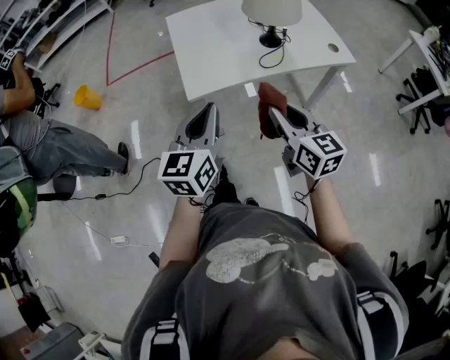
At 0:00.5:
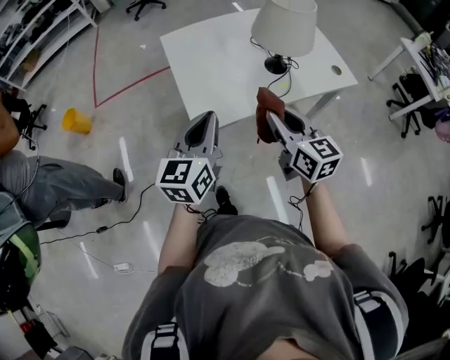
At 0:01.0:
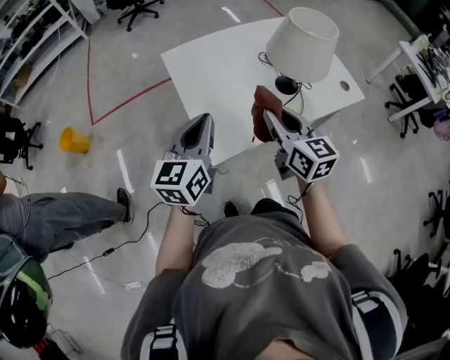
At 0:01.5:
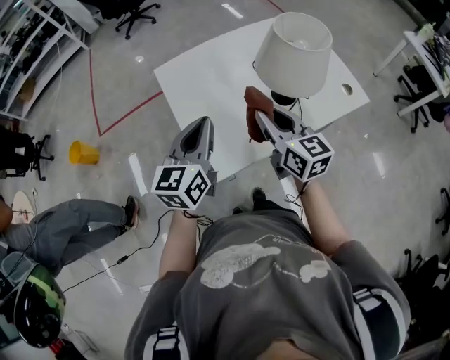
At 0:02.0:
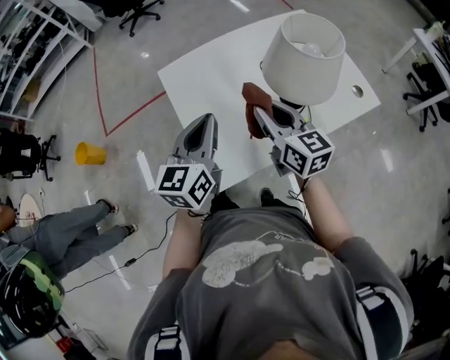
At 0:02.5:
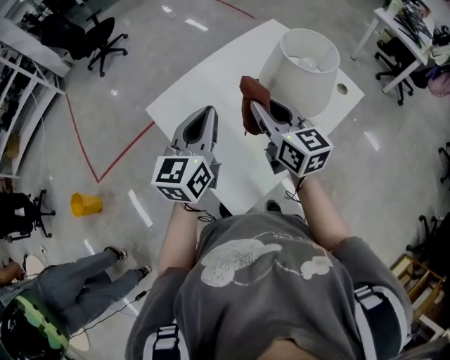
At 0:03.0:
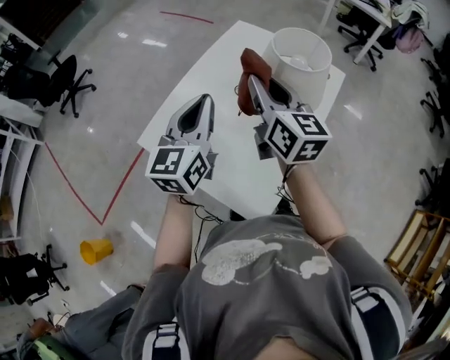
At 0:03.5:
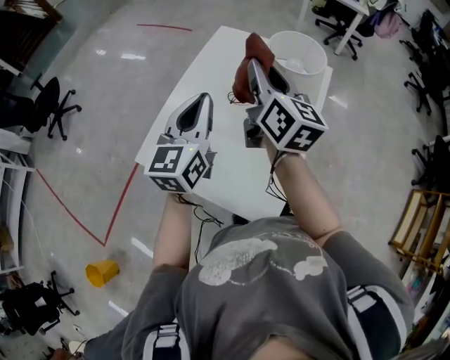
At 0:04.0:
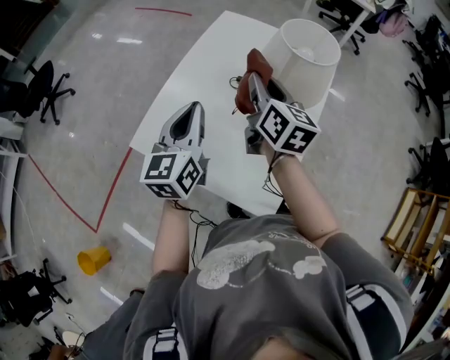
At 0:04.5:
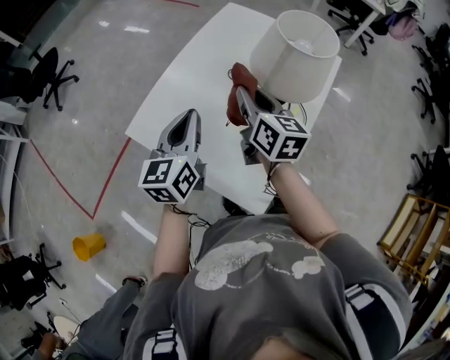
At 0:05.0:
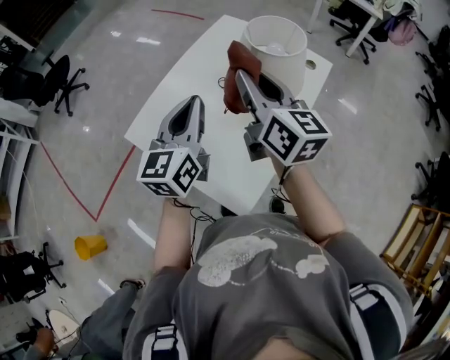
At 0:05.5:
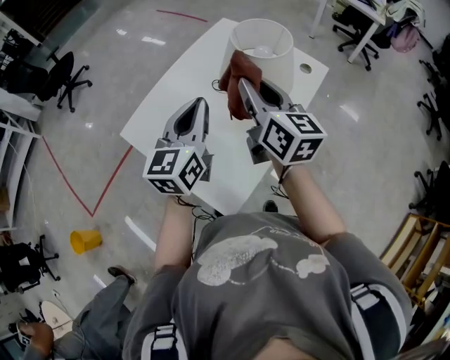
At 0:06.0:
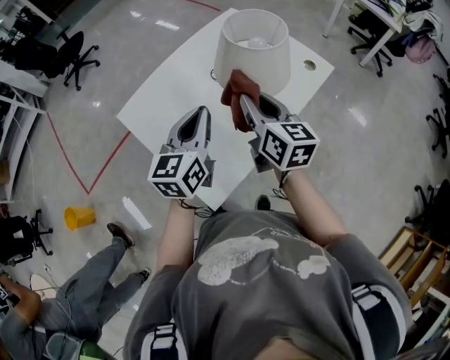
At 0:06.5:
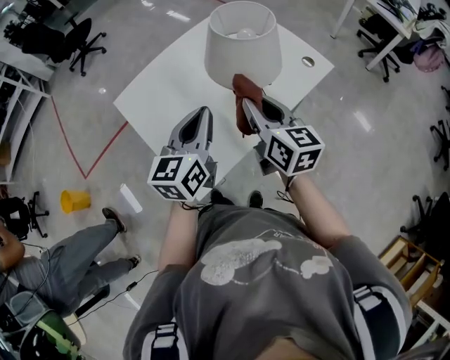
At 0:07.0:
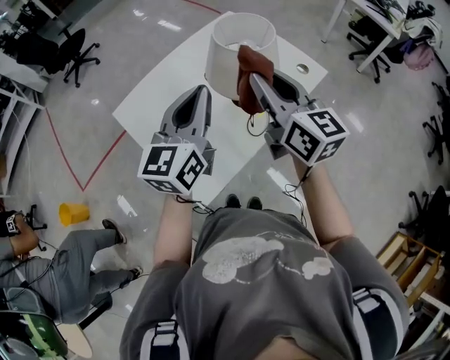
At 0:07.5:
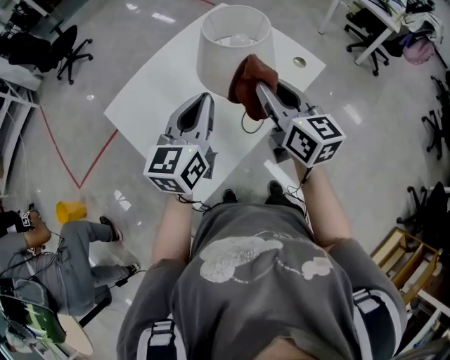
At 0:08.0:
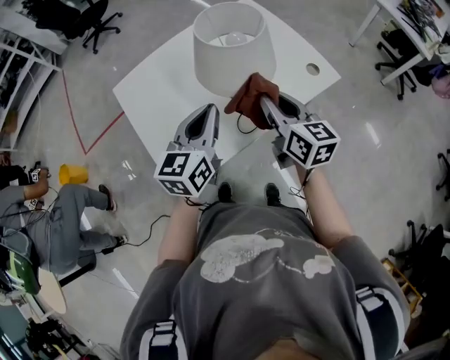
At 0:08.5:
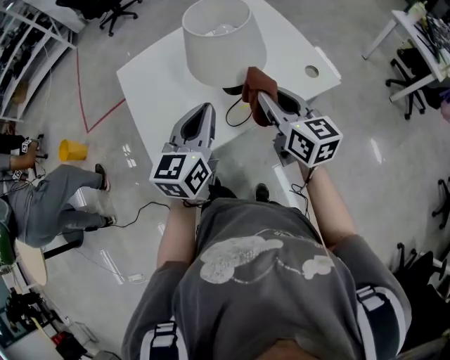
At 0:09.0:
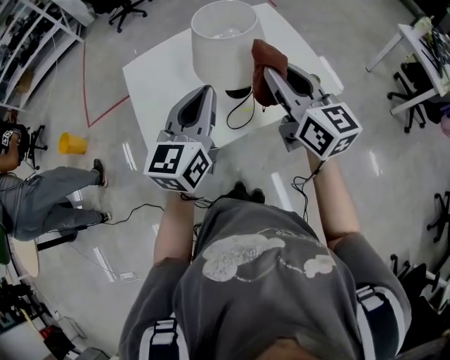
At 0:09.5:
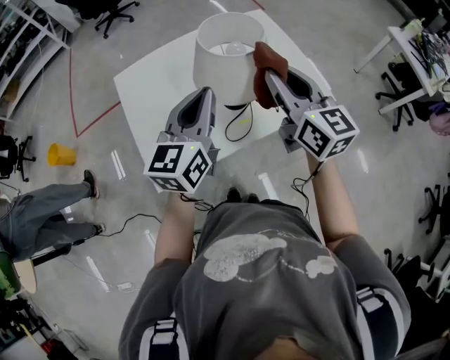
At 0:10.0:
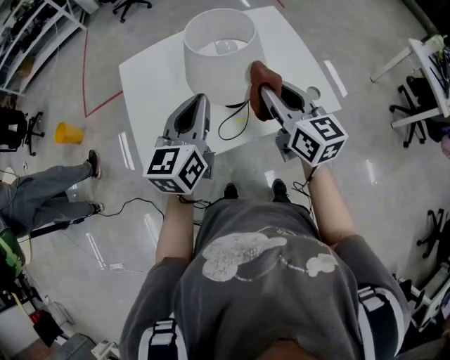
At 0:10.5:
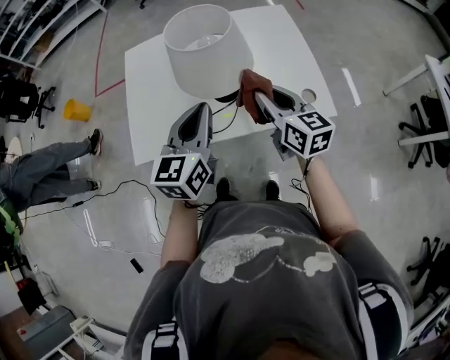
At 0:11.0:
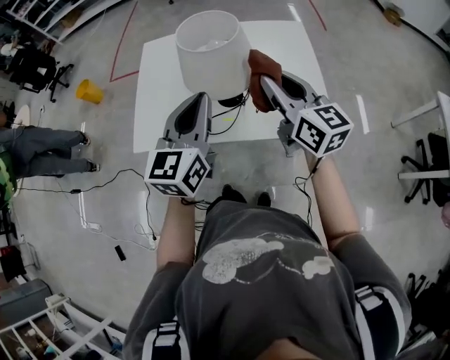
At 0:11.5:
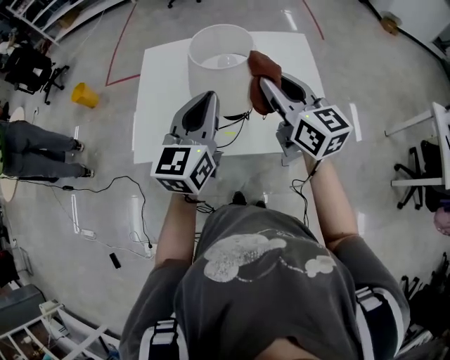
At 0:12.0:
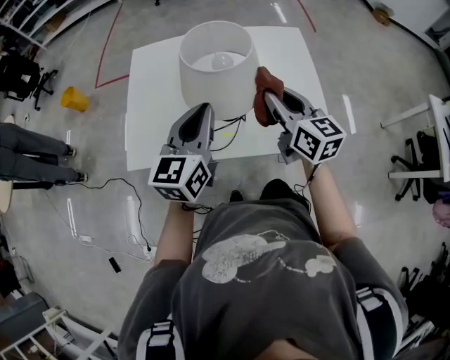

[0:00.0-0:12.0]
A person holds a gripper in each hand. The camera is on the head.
0:00.0 to 0:02.0: Both grippers travel together forward, roughly 30 cm.
0:02.0 to 0:04.0: The left gripper changes place by approximately 20 cm, and turns by about 30 degrees; the right gripper moves roughly 15 cm upward and comes back, and rotates some 60 degrees.
0:04.0 to 0:06.0: The right gripper moves up and down over approximately 15 cm, changing direction 2 times, and changes its angle by roughly 30 degrees; the left gripper shifts approximately 20 cm to the right and backward.
0:06.0 to 0:08.0: The grippers both shift to the right by some 10 cm. The right gripper reaches about 10 cm upward, then returns; the left gripper travels upward and back again, roughly 10 cm each way.
0:08.0 to 0:10.0: The right gripper travels to the right by approximately 5 cm, and swivels some 20 degrees.
0:10.0 to 0:12.0: The right gripper moves up and down over roughly 10 cm, changing direction 2 times.

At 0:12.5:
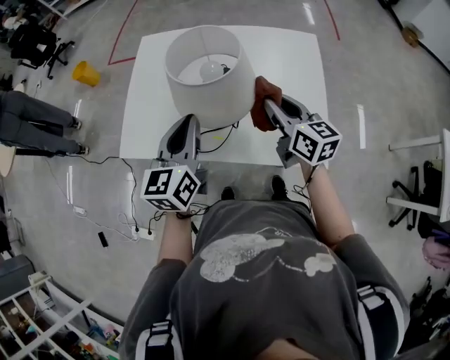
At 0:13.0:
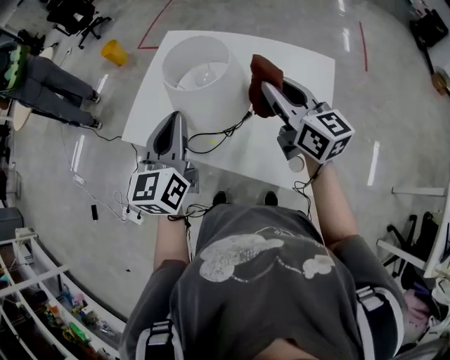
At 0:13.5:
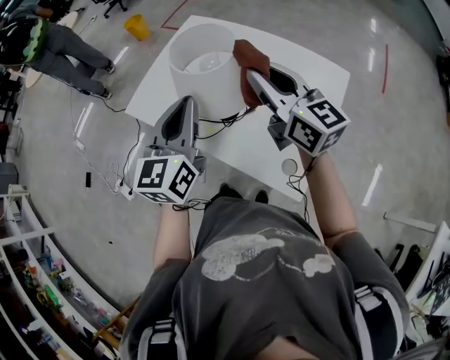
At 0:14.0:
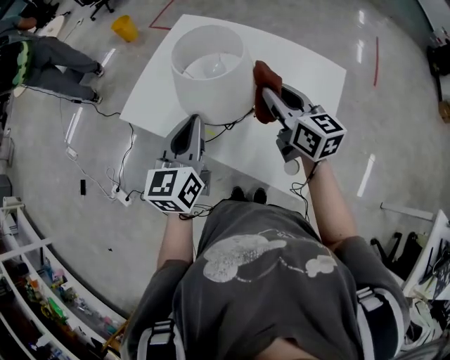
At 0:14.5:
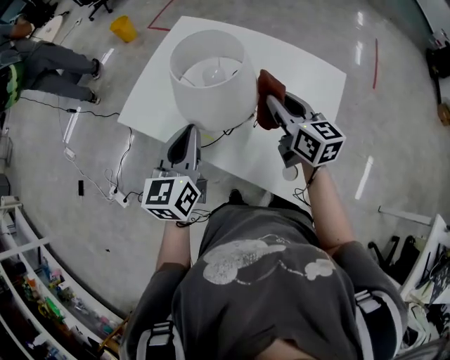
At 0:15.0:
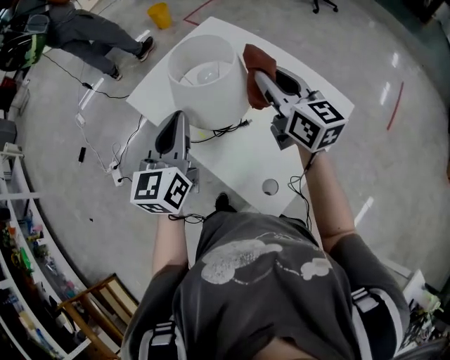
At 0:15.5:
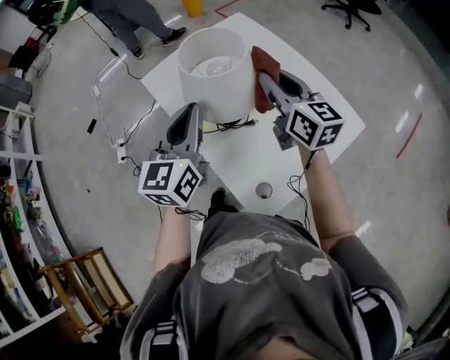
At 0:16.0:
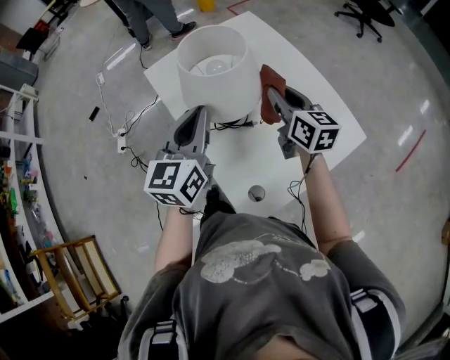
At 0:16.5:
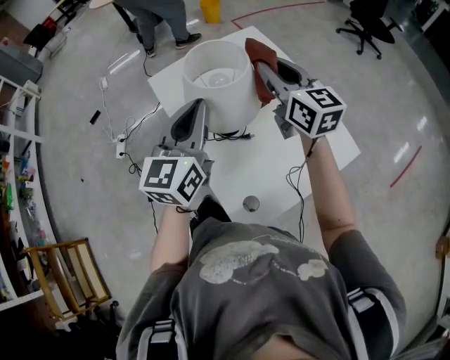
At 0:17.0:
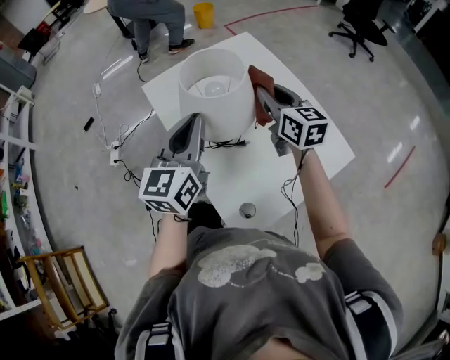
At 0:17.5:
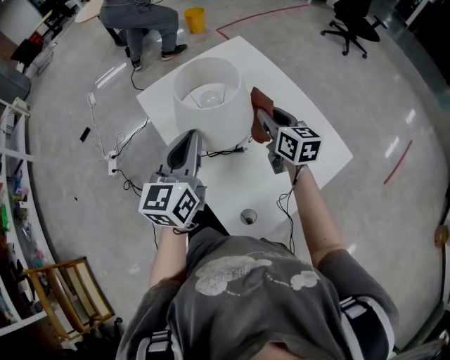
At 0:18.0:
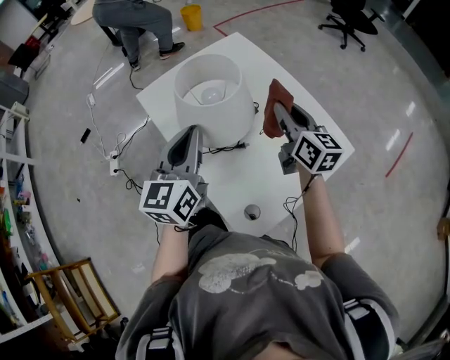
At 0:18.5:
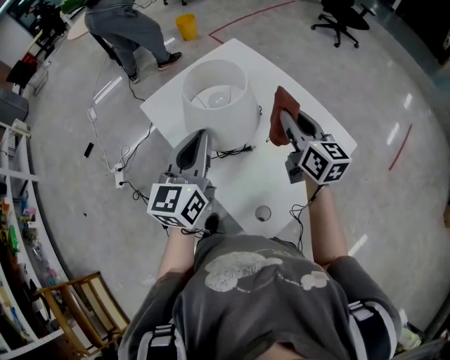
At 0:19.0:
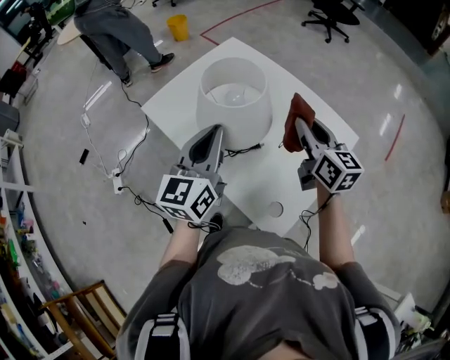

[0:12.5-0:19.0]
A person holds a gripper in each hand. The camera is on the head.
0:12.5 to 0:14.5: The left gripper goes upward and returns, roughly 10 cm each way, and turns by roughly 20 degrees, while the right gripper moves roughly 15 cm upward and comes back.
0:14.5 to 0:17.0: The left gripper ends up about 10 cm from where it was, and swivels roughly 30 degrees. Meanwhile the right gripper swings up and down, about 10 cm each way, with 3 reversals, and changes its angle by roughly 30 degrees.
0:17.0 to 0:19.0: The right gripper moves backward, about 10 cm, and changes its angle by approximately 20 degrees.

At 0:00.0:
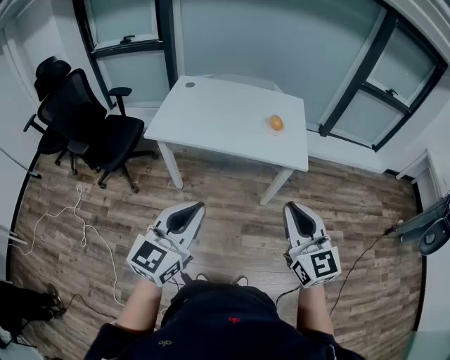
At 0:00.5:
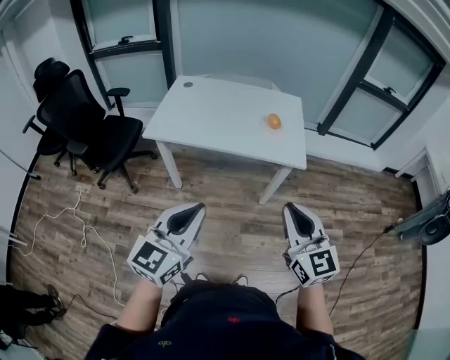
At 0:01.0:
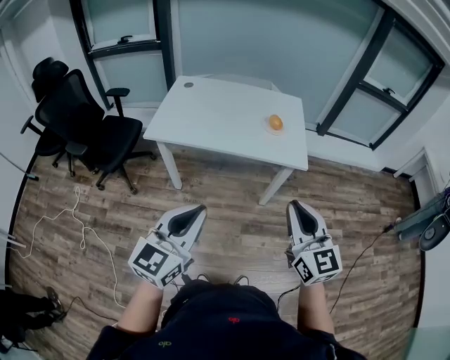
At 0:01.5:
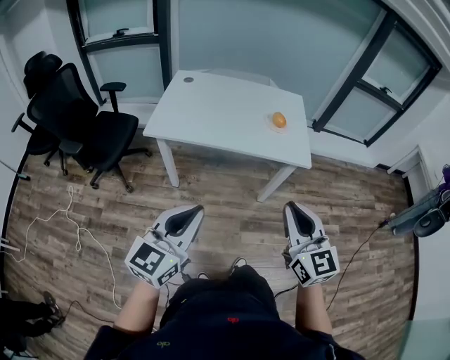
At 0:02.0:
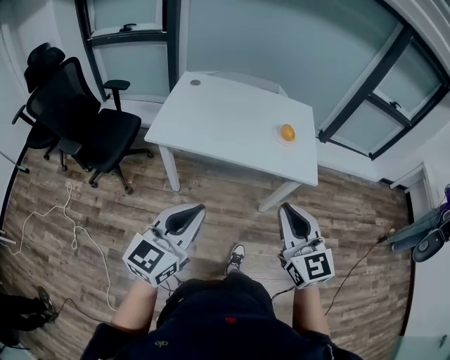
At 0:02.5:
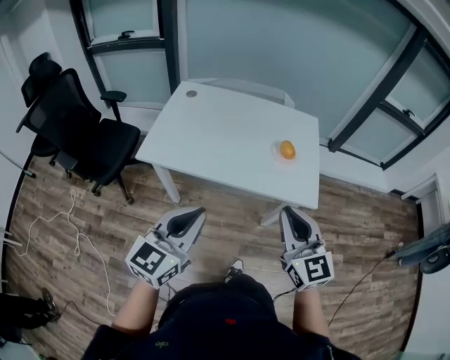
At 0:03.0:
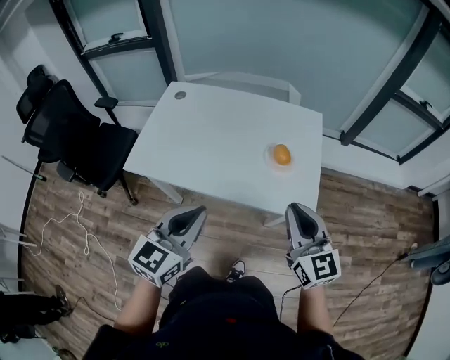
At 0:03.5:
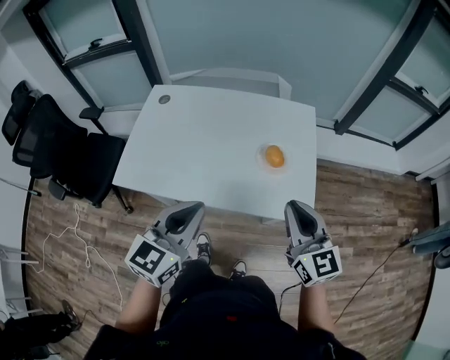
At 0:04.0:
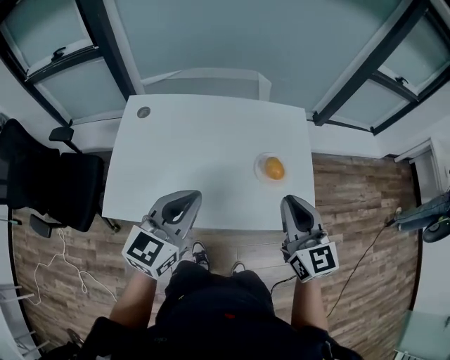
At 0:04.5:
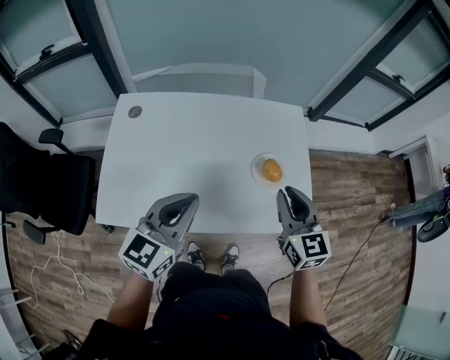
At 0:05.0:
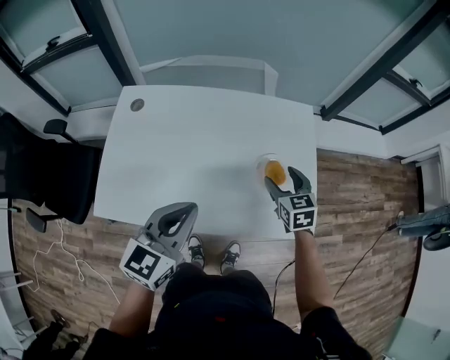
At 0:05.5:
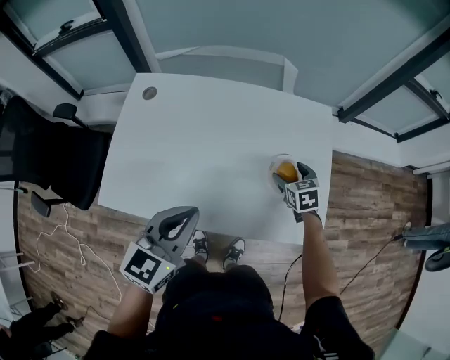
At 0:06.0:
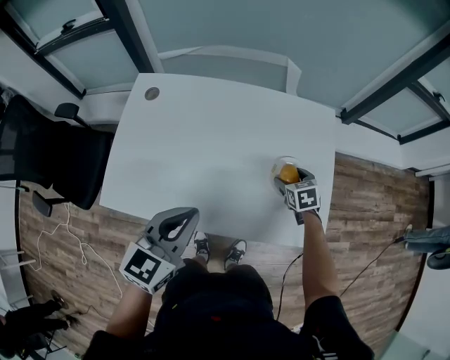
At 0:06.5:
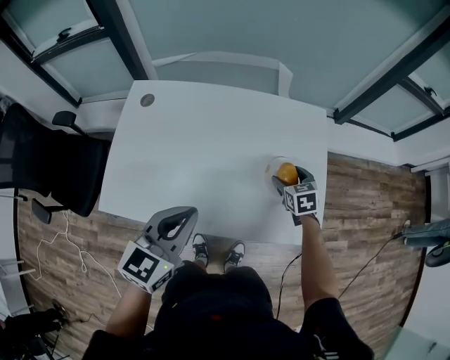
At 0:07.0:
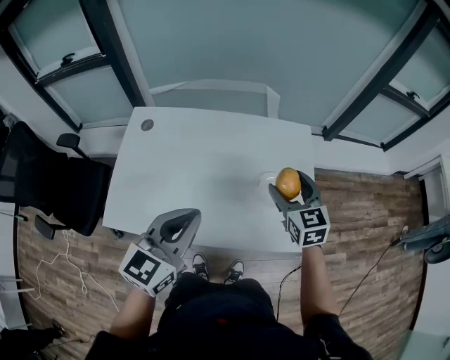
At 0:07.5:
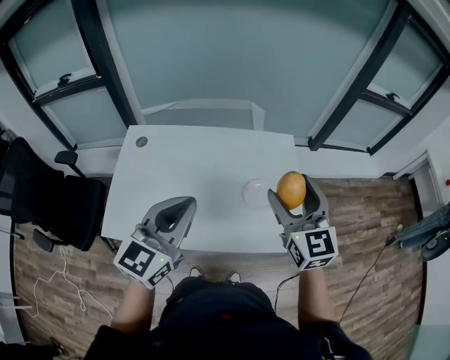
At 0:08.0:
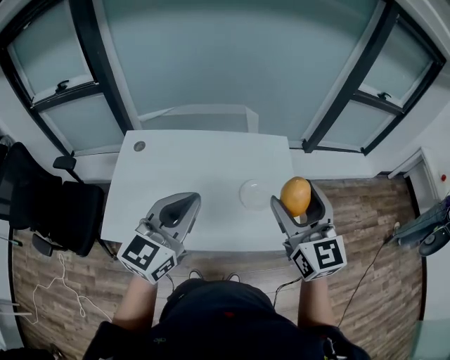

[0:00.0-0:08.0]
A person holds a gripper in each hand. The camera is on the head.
0:00.0 to 0:02.0: The two grippers go some 15 cm to the left and forward.
0:02.0 to 0:04.0: The pair of grippers is taken forward, approximately 50 cm.
0:04.0 to 0:06.0: The right gripper moves downward and forward, roughly 35 cm, angles its fingers downward, by some 50 degrees, and opens up; the left gripper is displaced downward by some 5 cm.
0:06.0 to 0:08.0: The right gripper moves upward and backward, some 50 cm, and points its fingers some 50 degrees further upward; the left gripper travels upward by some 15 cm, and swivels some 20 degrees.
